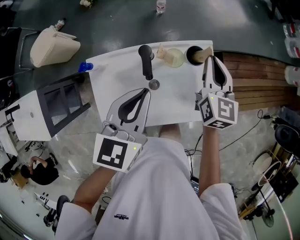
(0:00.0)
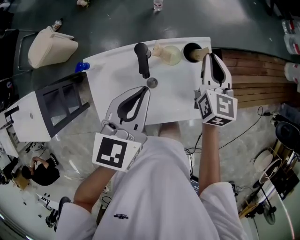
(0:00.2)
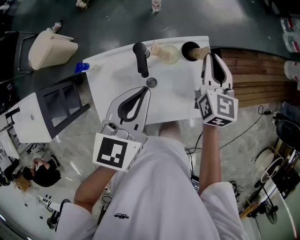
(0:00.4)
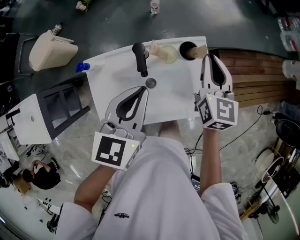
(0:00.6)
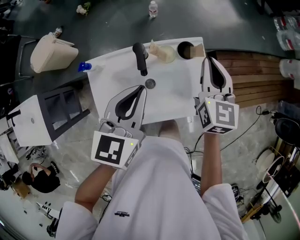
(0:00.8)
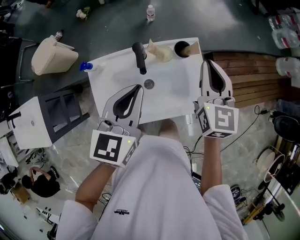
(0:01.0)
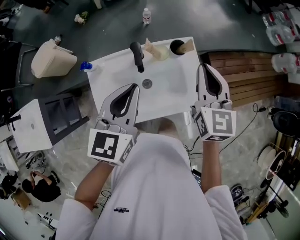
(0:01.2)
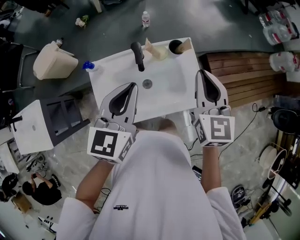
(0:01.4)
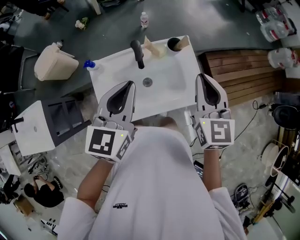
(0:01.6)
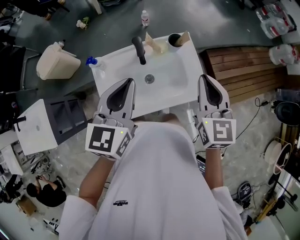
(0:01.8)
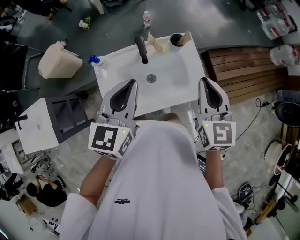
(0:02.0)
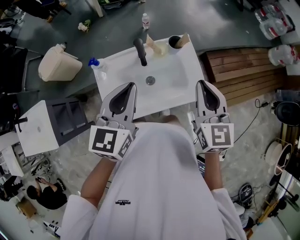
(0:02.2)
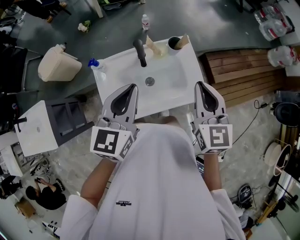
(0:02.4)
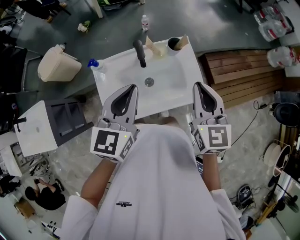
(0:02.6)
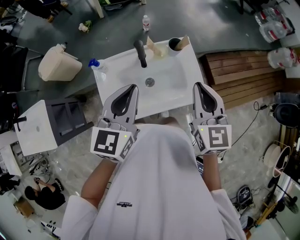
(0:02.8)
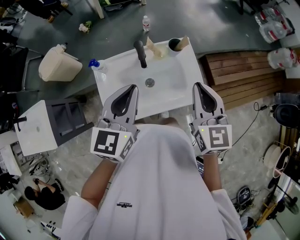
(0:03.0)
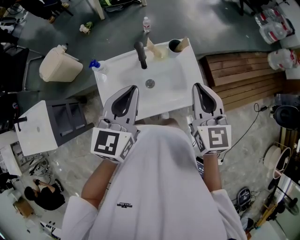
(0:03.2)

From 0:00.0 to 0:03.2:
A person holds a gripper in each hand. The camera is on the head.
From 0:00.0 to 0:01.6: The right gripper shifts roughly 20 cm backward and upward. Meanwhile the left gripper moves backward and upward, approximately 10 cm.
From 0:01.6 to 0:03.2: There are only small adjustments of the grippers.

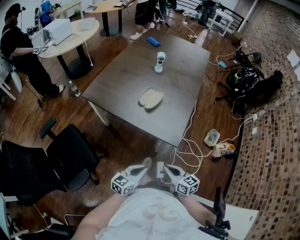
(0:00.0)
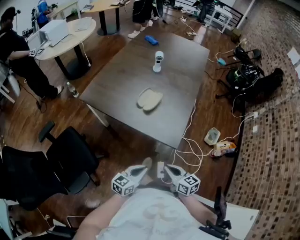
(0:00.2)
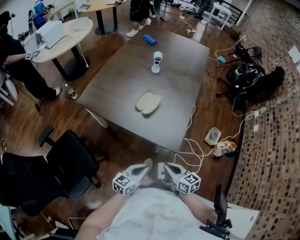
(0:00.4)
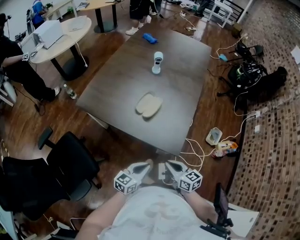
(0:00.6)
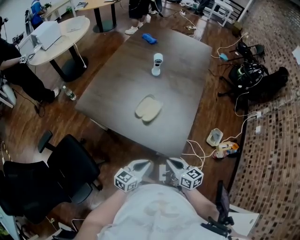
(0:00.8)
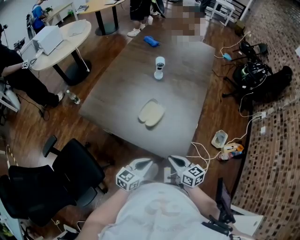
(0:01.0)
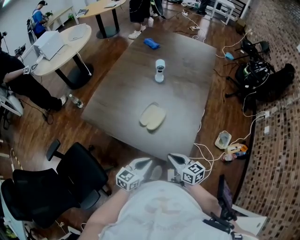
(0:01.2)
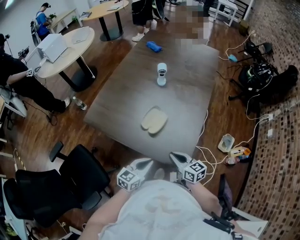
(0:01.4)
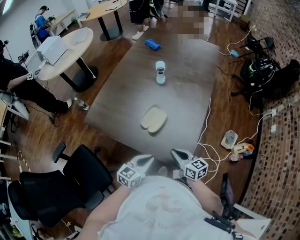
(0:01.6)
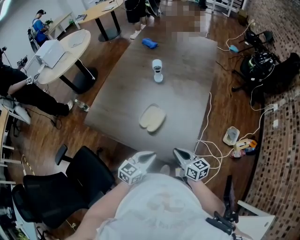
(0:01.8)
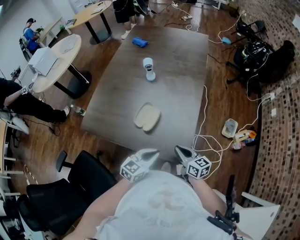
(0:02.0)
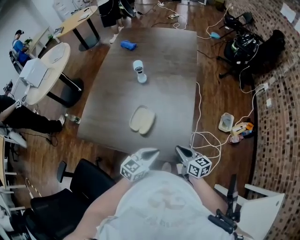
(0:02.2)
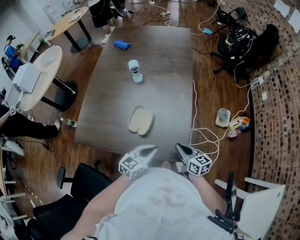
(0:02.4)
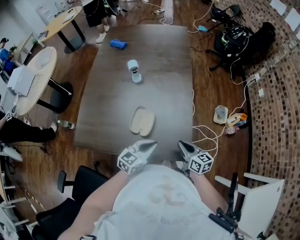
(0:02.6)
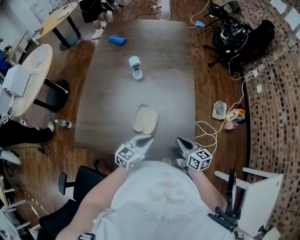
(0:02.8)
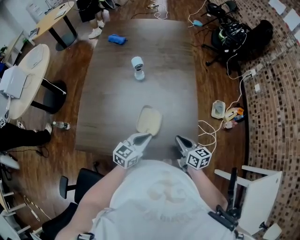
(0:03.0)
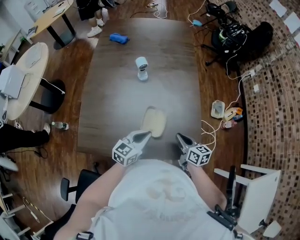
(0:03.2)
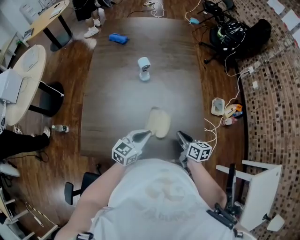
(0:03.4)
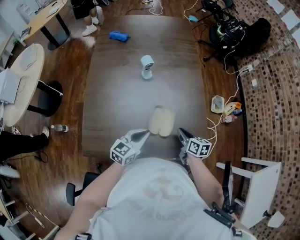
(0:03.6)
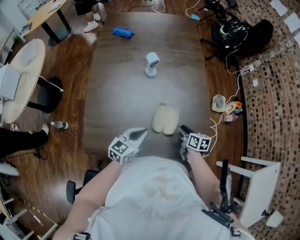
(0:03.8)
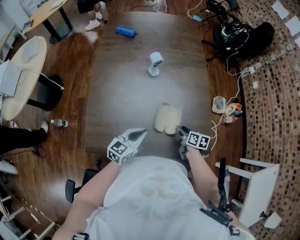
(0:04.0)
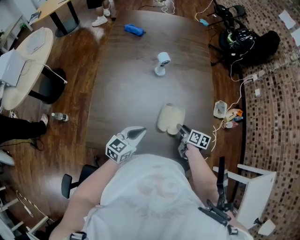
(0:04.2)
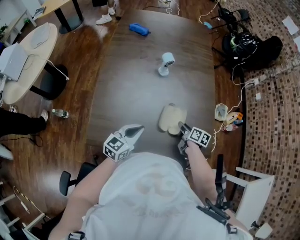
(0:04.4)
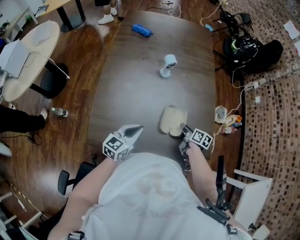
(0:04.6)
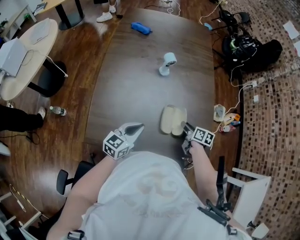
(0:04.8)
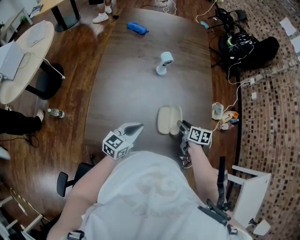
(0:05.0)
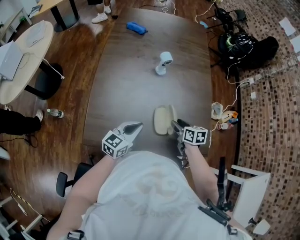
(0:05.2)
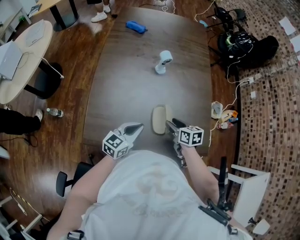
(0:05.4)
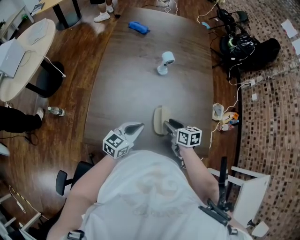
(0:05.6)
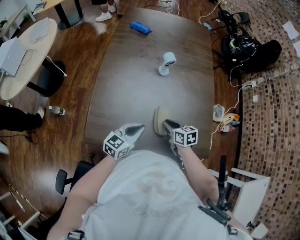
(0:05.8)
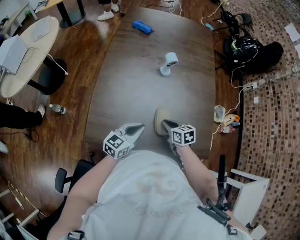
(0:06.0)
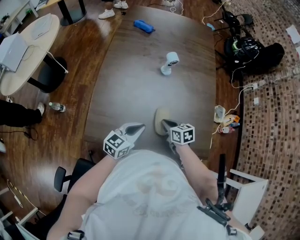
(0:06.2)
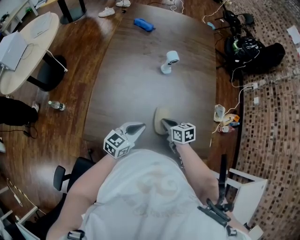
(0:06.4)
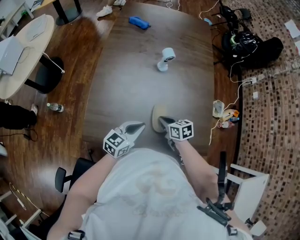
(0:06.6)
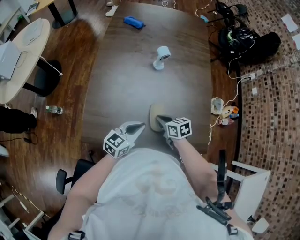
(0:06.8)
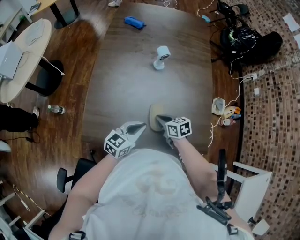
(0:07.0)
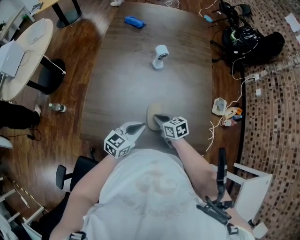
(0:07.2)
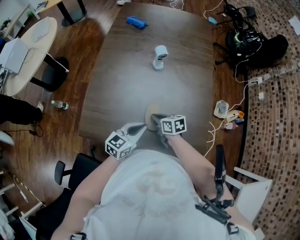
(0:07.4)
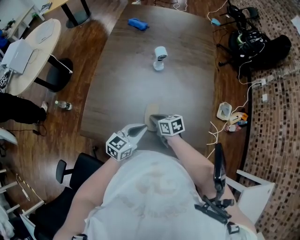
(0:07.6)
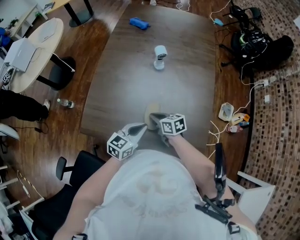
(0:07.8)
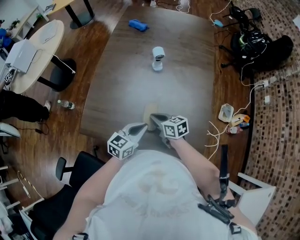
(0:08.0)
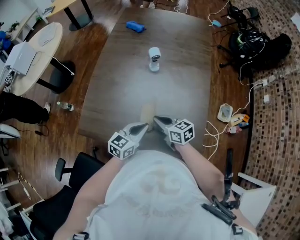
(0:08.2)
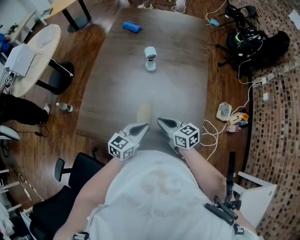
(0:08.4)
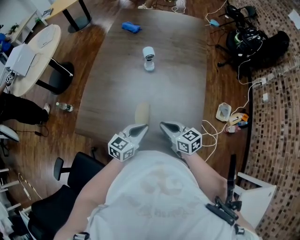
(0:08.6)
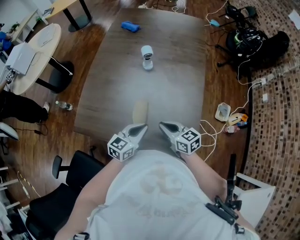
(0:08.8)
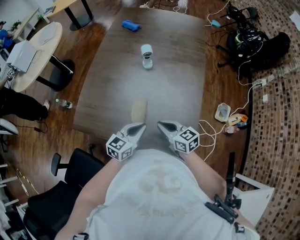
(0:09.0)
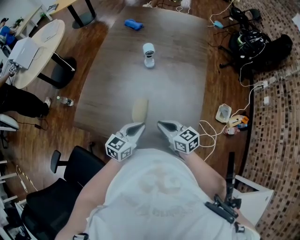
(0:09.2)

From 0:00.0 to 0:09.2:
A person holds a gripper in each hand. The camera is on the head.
From 0:00.0 to 0:01.6: Both grippers move forward, approximately 25 cm.
From 0:01.6 to 0:03.0: The right gripper travels forward by about 5 cm, and changes its angle by about 30 degrees. Meanwhile the left gripper is displaced forward and to the left by some 15 cm, and rotates some 20 degrees.
From 0:03.0 to 0:04.6: The right gripper is displaced downward, to the left and forward by approximately 15 cm, swivels some 30 degrees, and opens up; the left gripper travels to the left by some 20 cm.
From 0:04.6 to 0:06.2: The right gripper goes about 15 cm to the left, turns by approximately 40 degrees, and closes.
From 0:06.2 to 0:07.6: The left gripper is displaced to the right by about 10 cm.
From 0:07.6 to 0:09.2: The right gripper heads to the right, upward and backward, covering about 15 cm, and rotates about 20 degrees. The left gripper goes about 5 cm to the right.

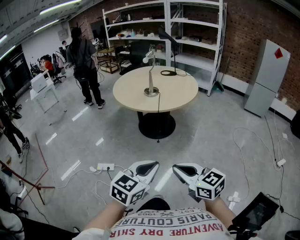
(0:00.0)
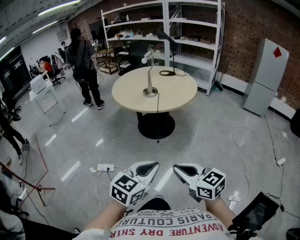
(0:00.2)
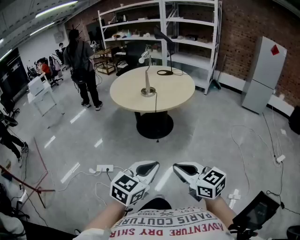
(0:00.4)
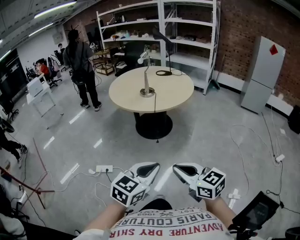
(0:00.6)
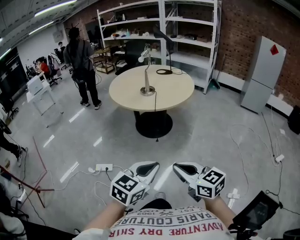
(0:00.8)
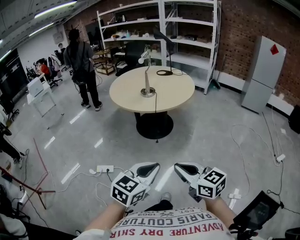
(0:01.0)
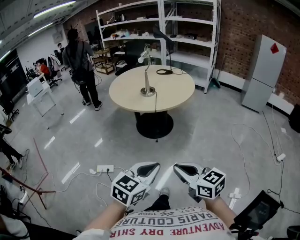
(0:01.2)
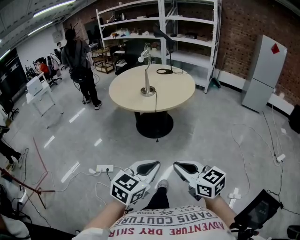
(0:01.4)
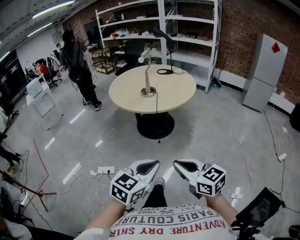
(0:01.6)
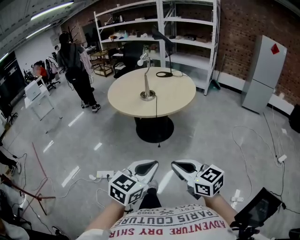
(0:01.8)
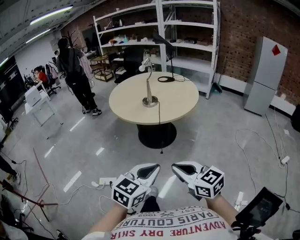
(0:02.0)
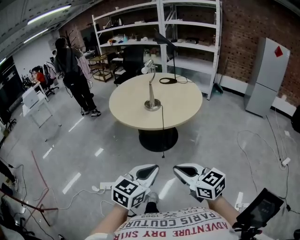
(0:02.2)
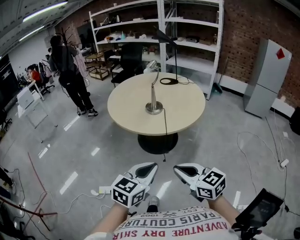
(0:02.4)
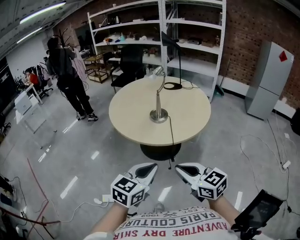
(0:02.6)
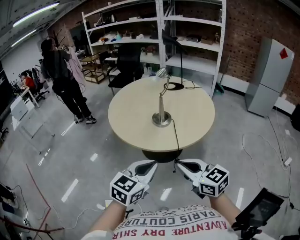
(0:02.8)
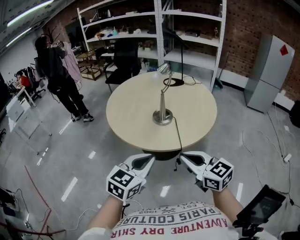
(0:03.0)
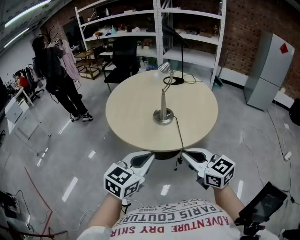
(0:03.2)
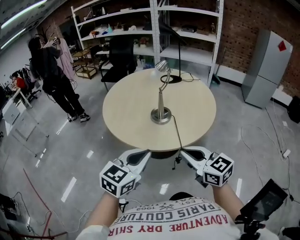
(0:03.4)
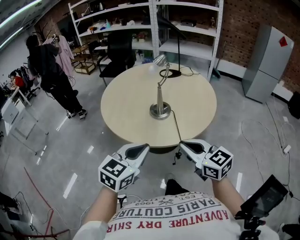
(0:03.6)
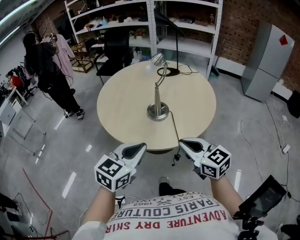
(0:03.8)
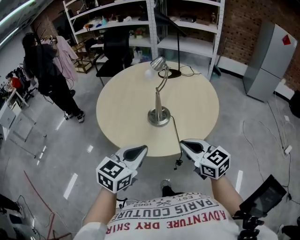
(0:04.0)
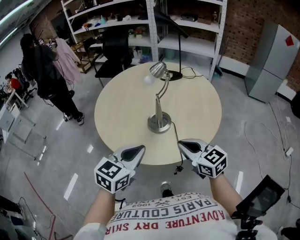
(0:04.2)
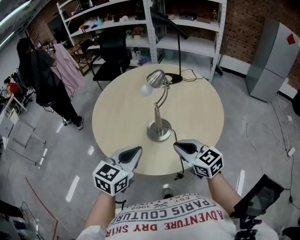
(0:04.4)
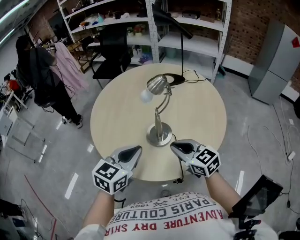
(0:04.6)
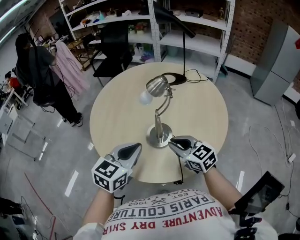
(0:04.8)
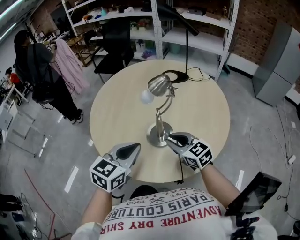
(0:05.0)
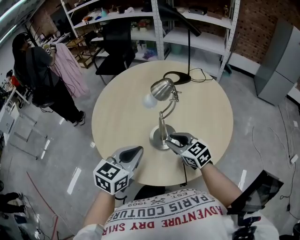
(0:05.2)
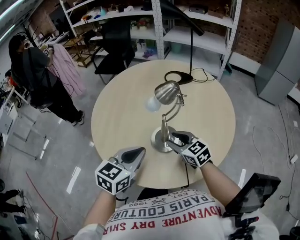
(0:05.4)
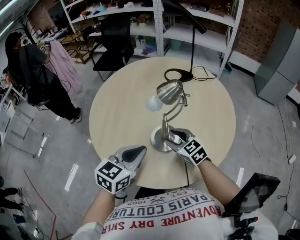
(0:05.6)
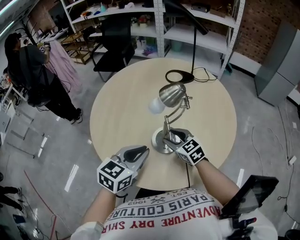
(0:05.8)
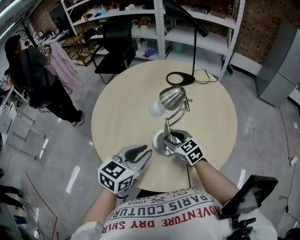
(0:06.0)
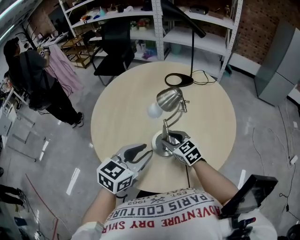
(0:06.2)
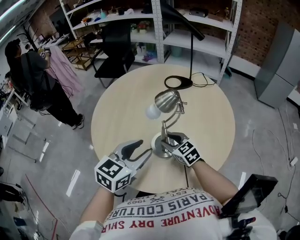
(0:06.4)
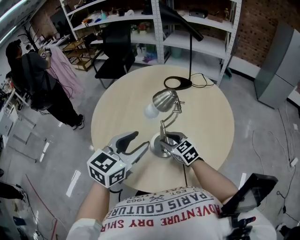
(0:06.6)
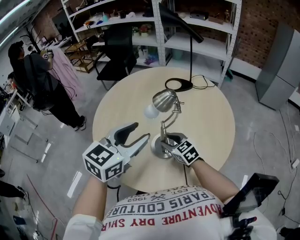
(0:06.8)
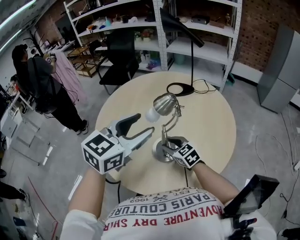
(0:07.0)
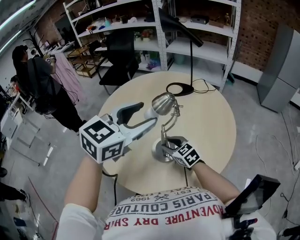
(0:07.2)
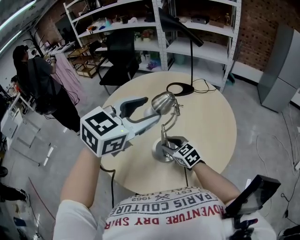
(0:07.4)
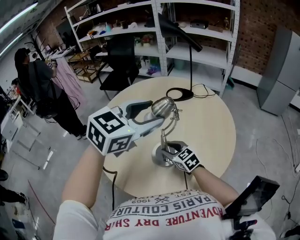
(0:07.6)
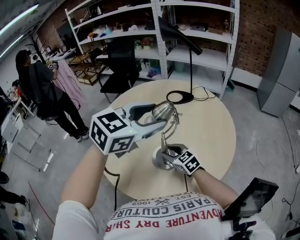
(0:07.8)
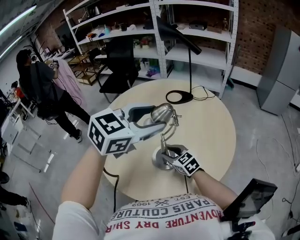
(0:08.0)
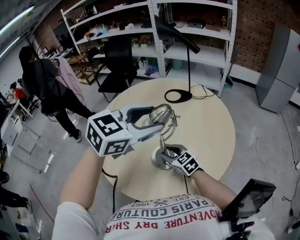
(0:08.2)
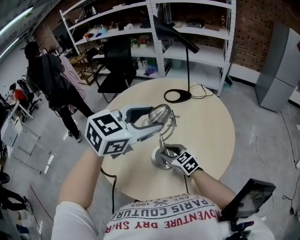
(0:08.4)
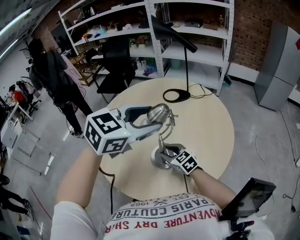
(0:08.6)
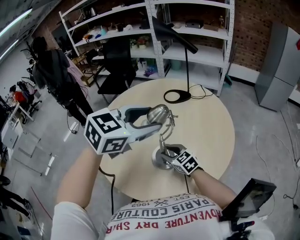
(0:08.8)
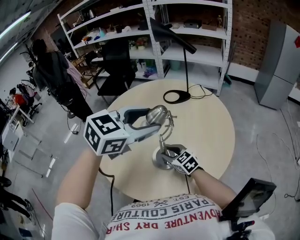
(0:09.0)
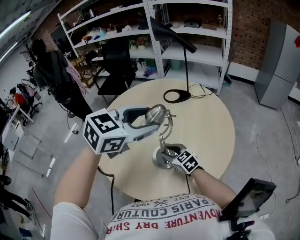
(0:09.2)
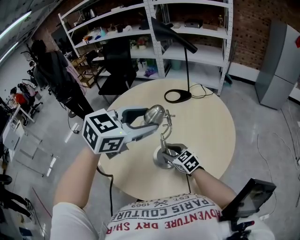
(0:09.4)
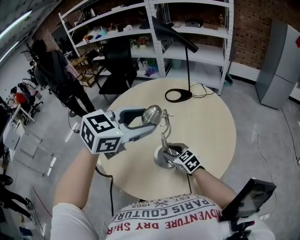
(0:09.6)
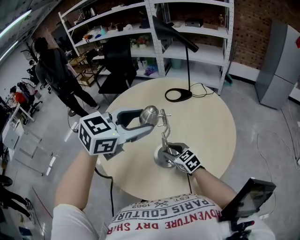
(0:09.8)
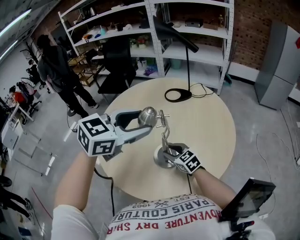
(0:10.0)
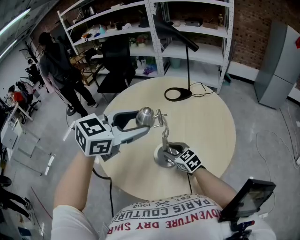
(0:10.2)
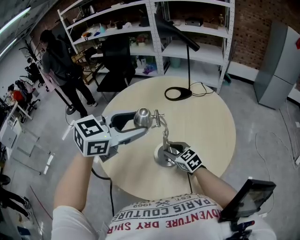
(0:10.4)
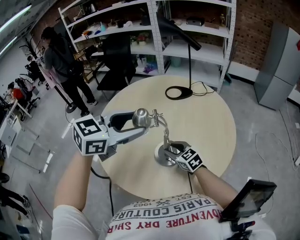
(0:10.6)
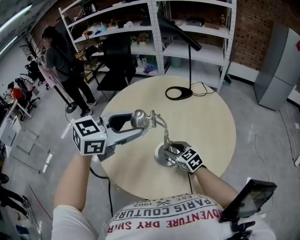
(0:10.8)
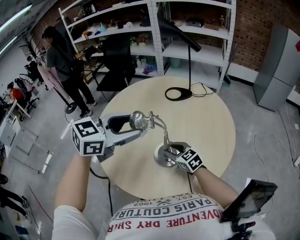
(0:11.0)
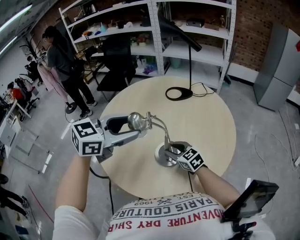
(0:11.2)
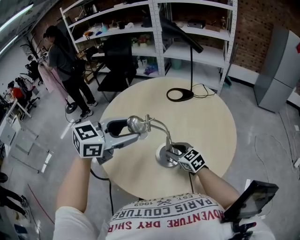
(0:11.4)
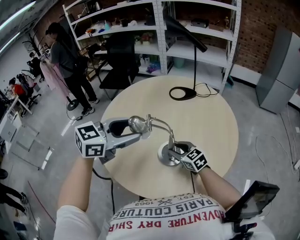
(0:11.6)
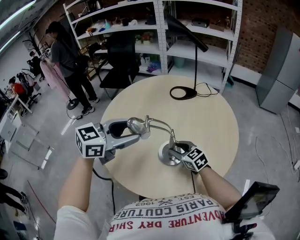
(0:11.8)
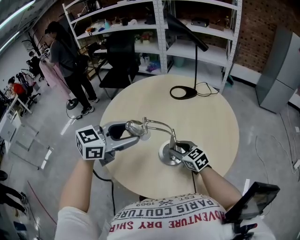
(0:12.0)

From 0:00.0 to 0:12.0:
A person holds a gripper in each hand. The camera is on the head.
From 0:00.0 to 0:01.6: The grippers make only small movements.
From 0:01.6 to 0:03.0: The pair of grippers is taken forward and to the left, roughly 40 cm.
From 0:03.0 to 0:04.4: Both grippers travel together forward, some 20 cm.
From 0:04.4 to 0:06.0: The left gripper travels forward by roughly 10 cm. The right gripper travels forward and downward by approximately 20 cm, and opens.
From 0:06.0 to 0:07.6: The left gripper moves upward, forward and to the right, about 20 cm, swivels about 20 degrees, and opens its fingers.
From 0:07.6 to 0:09.0: The grippers stay close to where they were, moving slightly.
From 0:09.0 to 0:10.4: The left gripper shifts some 5 cm to the left.
From 0:10.4 to 0:12.0: The left gripper heads downward and to the left, covering approximately 10 cm.
